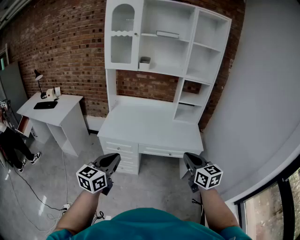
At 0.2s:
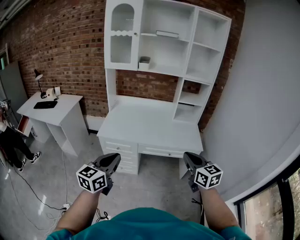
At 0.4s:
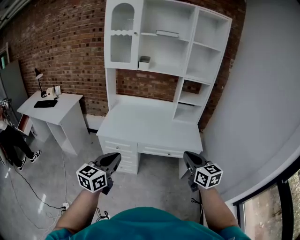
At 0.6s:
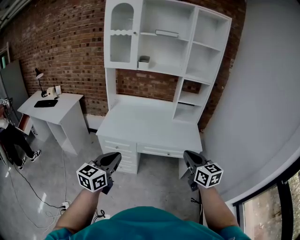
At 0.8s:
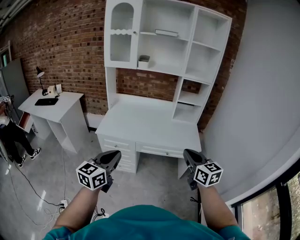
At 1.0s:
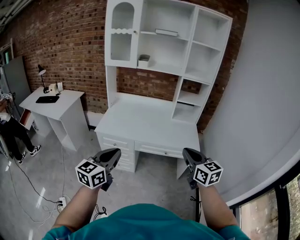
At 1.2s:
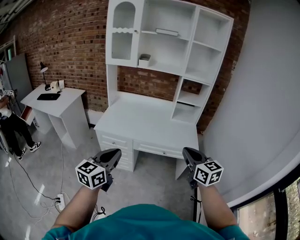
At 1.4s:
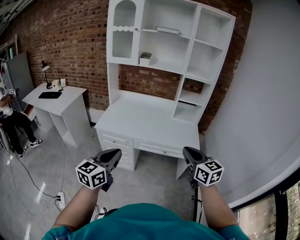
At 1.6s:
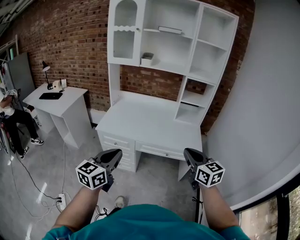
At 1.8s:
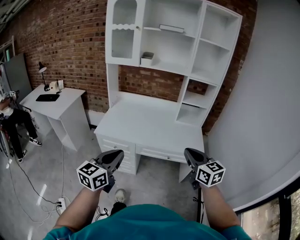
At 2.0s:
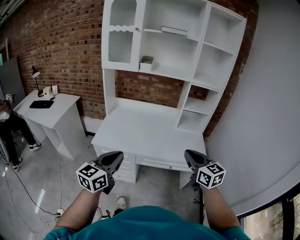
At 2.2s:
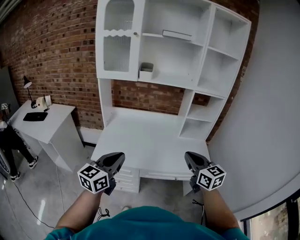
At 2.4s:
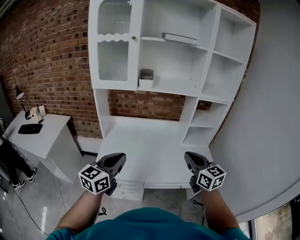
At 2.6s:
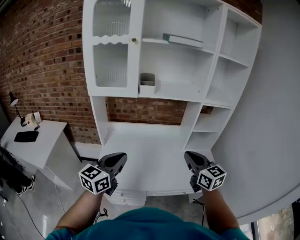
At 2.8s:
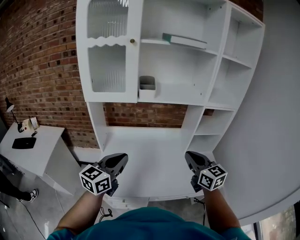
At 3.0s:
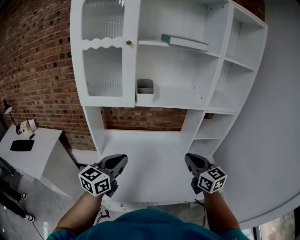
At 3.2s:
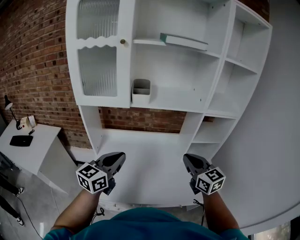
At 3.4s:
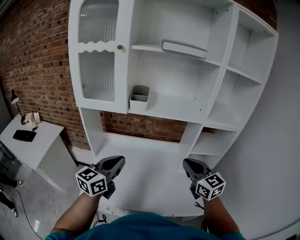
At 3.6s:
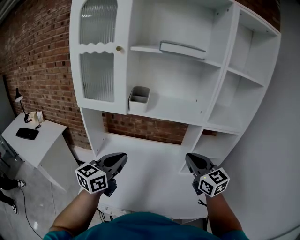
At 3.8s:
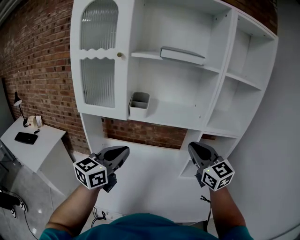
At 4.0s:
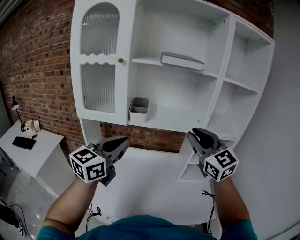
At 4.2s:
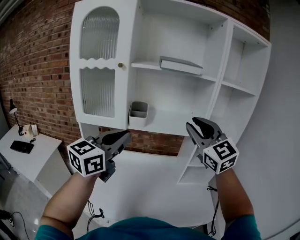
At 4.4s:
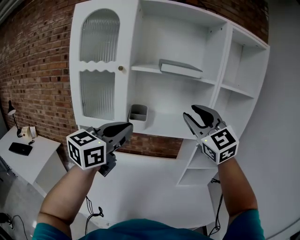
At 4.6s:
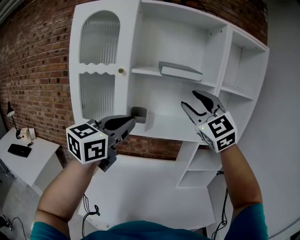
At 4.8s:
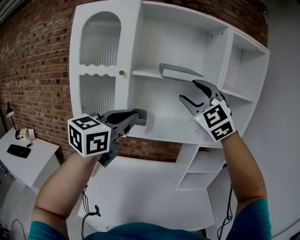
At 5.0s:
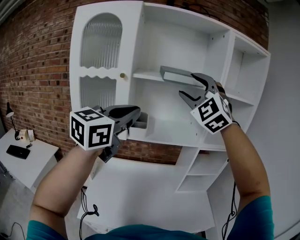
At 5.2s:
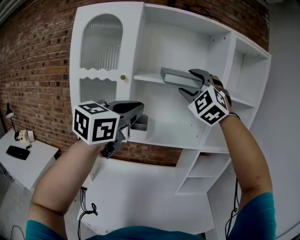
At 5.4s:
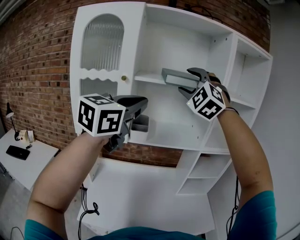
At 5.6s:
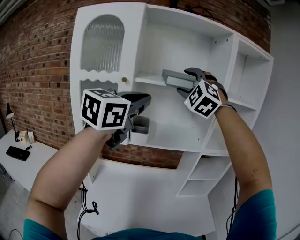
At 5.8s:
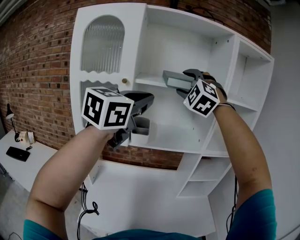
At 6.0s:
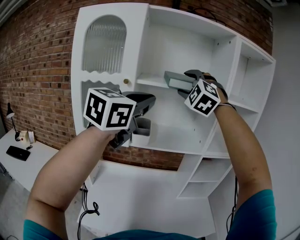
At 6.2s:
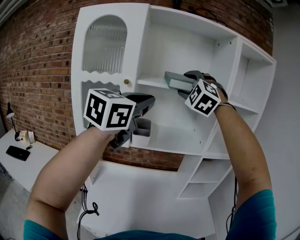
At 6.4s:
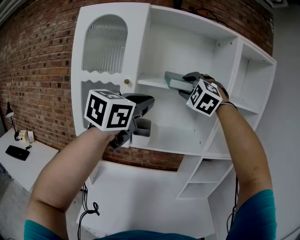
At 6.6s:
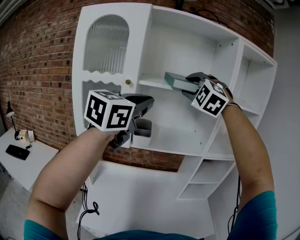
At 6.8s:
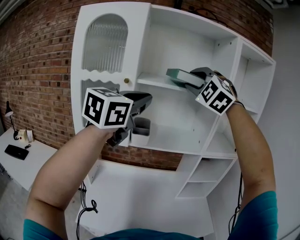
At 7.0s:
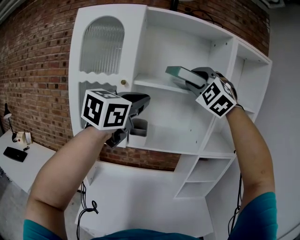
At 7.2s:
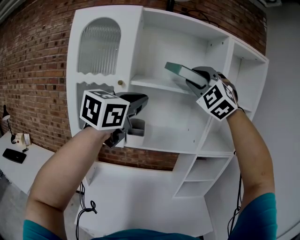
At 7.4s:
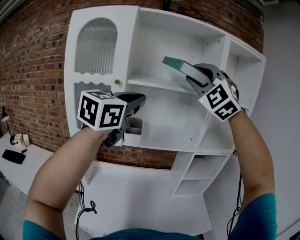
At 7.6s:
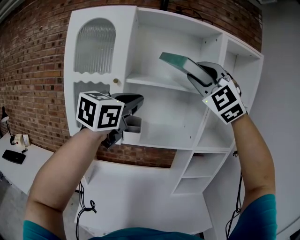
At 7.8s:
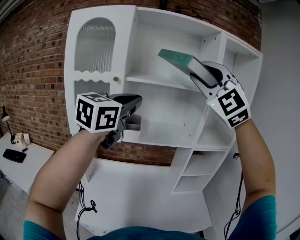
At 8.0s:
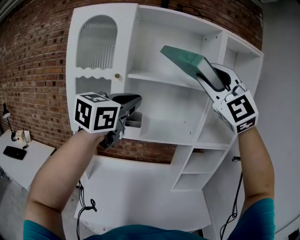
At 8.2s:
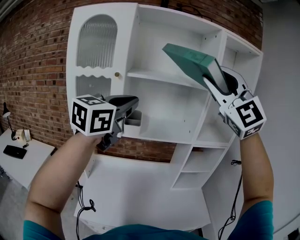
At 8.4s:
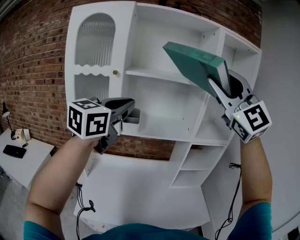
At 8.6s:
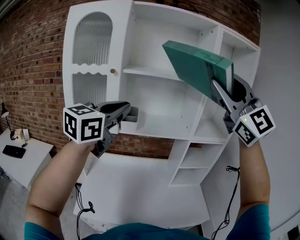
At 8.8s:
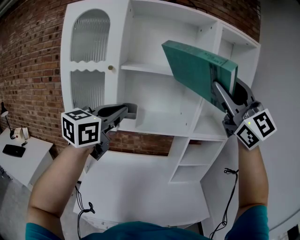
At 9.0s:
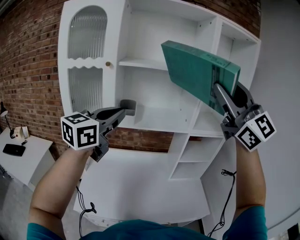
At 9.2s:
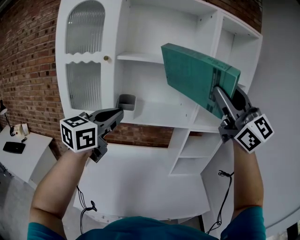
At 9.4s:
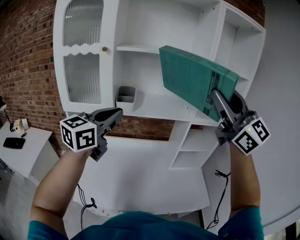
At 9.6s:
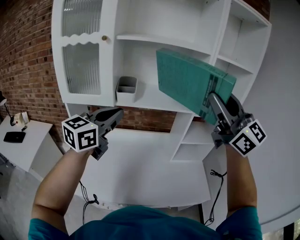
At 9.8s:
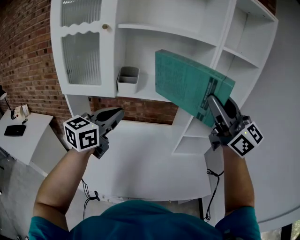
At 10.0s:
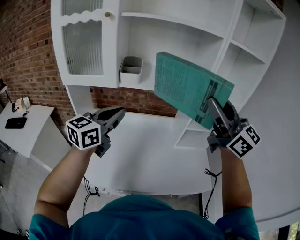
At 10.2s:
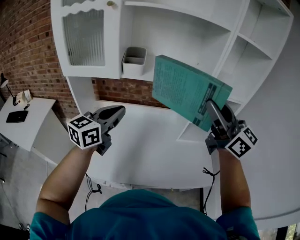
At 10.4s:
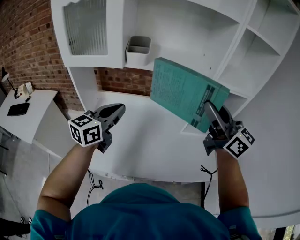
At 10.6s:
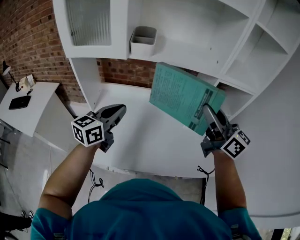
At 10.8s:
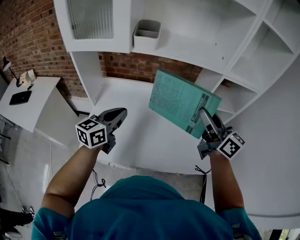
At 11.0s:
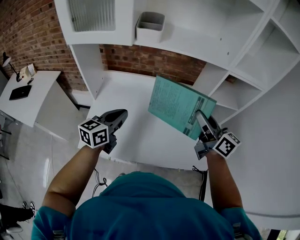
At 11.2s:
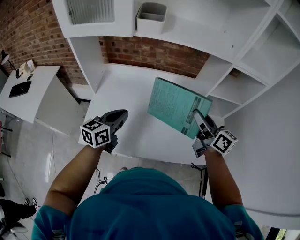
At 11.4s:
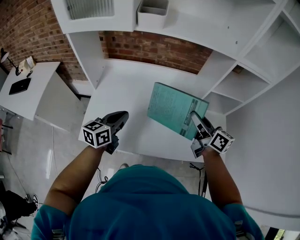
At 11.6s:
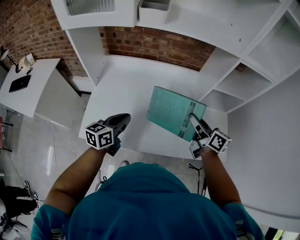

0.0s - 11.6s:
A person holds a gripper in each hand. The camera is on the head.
0.0s - 1.4s: The two grippers go about 5 cm to the right.
1.4s - 2.8s: Both grippers are carried forward and to the left, roughly 40 cm.
2.8s - 4.4s: The two grippers go some 30 cm upward and forward. The right gripper twists roughly 40 degrees counterclockwise, seen from behind, and opens up.
4.4s - 5.8s: The right gripper moves forward, upward and to the left, some 20 cm, rotates around the line of its fingers by roughly 40 degrees, counterclockwise from behind, and opens. Meanwhile the left gripper heads upward and forward, covering roughly 15 cm.
5.8s - 7.2s: The right gripper travels backward by some 5 cm, and closes its fingers.
7.2s - 8.8s: The left gripper heads downward and backward, covering roughly 10 cm, while the right gripper travels backward and to the right by some 20 cm, and turns by roughly 50 degrees.
8.8s - 10.2s: Both grippers travel together downward, some 20 cm. The right gripper twists approximately 50 degrees clockwise, seen from behind.
10.2s - 11.6s: Both grippers travel together downward, some 35 cm. The right gripper rolls clockwise, seen from behind, by some 40 degrees. The left gripper rotates approximately 30 degrees.

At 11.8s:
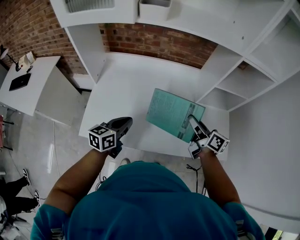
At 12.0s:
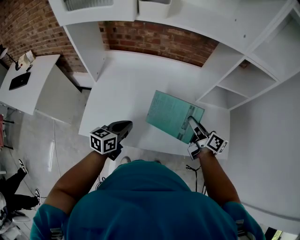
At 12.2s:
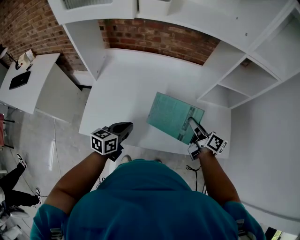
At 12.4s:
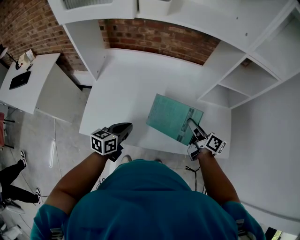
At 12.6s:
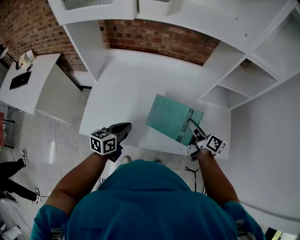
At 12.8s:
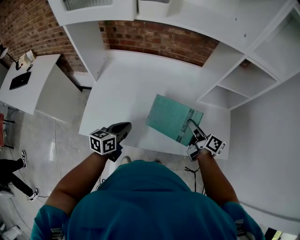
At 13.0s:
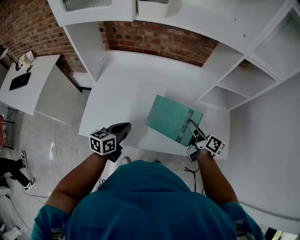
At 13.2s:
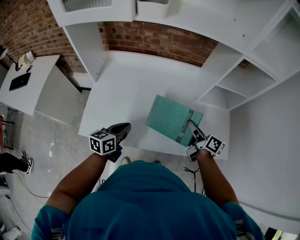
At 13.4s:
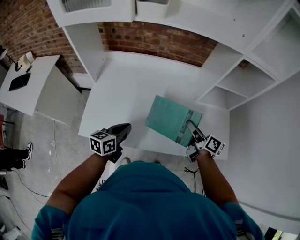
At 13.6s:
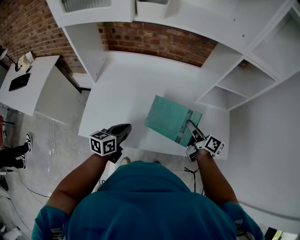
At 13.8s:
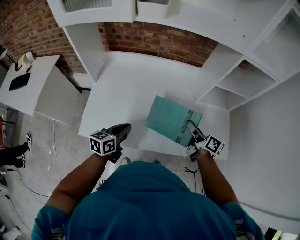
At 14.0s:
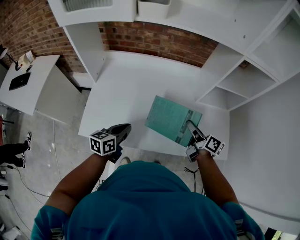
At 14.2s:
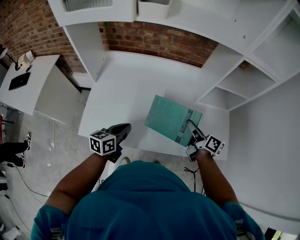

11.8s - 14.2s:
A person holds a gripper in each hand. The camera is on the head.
11.8s - 13.0s: The right gripper is displaced downward by approximately 5 cm.
13.0s - 14.2s: The two grippers keep their place.

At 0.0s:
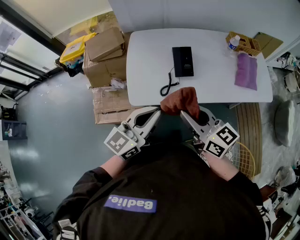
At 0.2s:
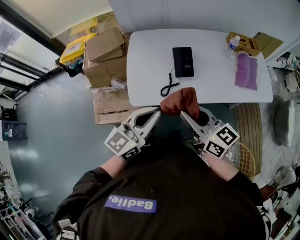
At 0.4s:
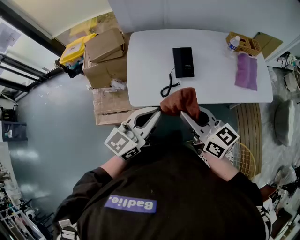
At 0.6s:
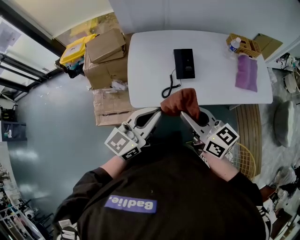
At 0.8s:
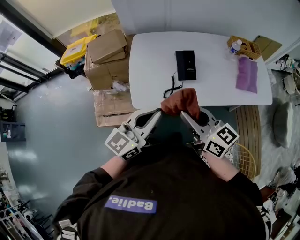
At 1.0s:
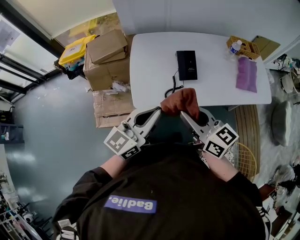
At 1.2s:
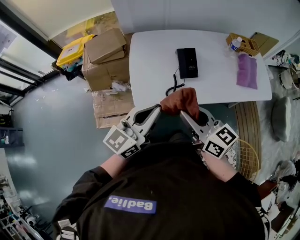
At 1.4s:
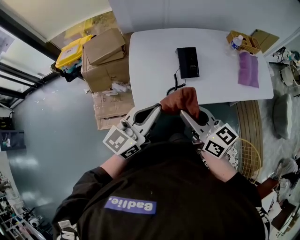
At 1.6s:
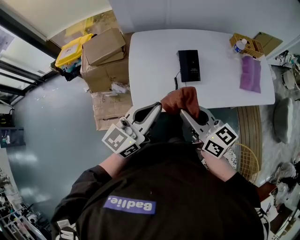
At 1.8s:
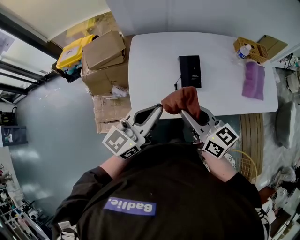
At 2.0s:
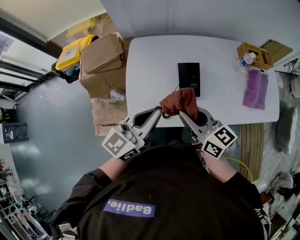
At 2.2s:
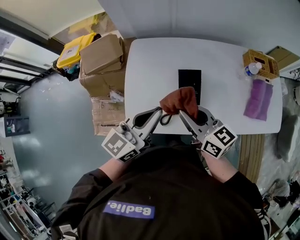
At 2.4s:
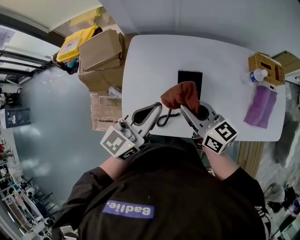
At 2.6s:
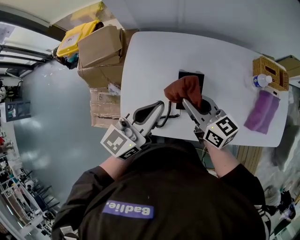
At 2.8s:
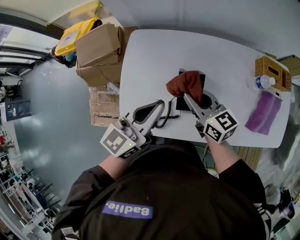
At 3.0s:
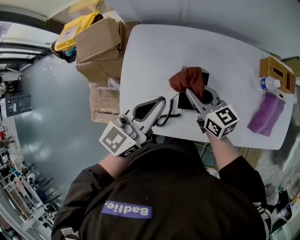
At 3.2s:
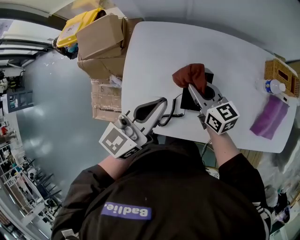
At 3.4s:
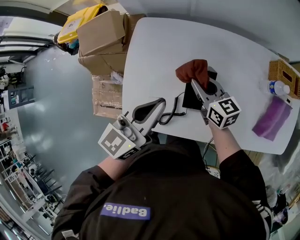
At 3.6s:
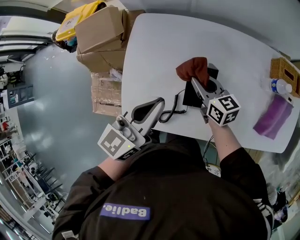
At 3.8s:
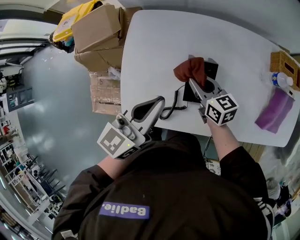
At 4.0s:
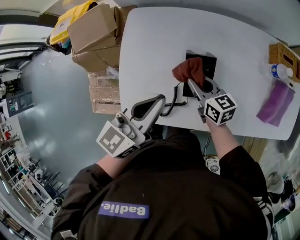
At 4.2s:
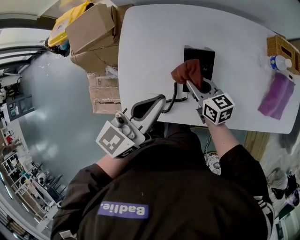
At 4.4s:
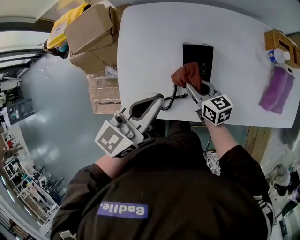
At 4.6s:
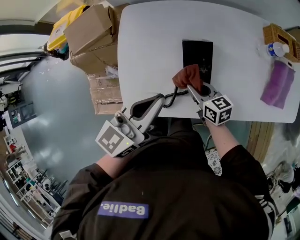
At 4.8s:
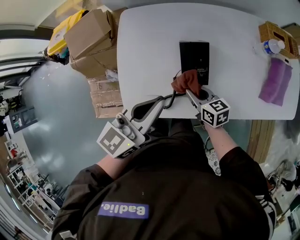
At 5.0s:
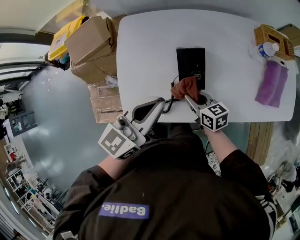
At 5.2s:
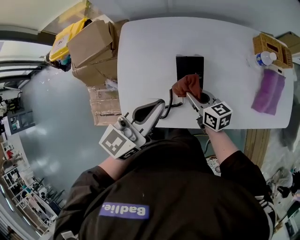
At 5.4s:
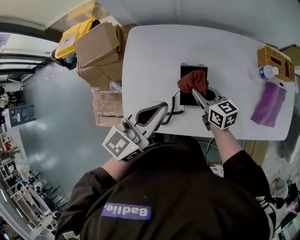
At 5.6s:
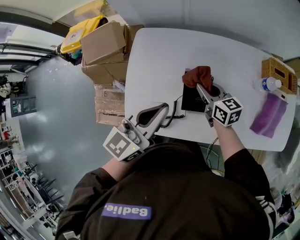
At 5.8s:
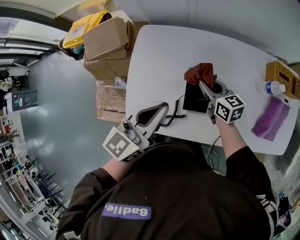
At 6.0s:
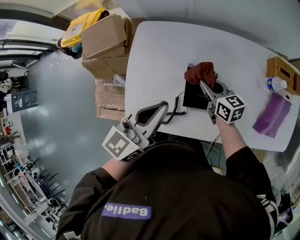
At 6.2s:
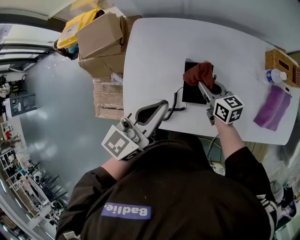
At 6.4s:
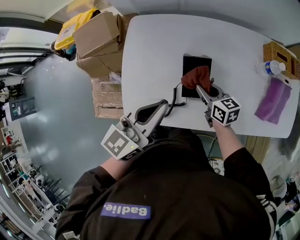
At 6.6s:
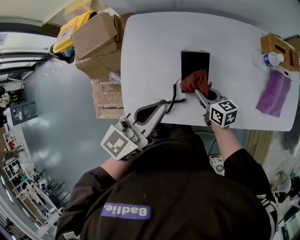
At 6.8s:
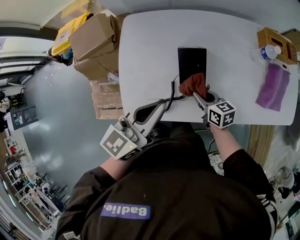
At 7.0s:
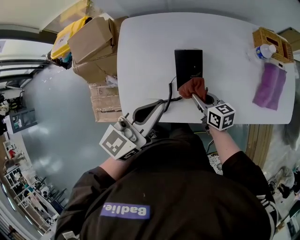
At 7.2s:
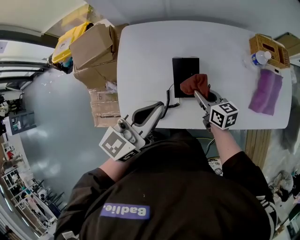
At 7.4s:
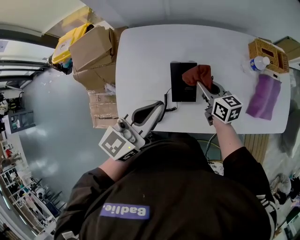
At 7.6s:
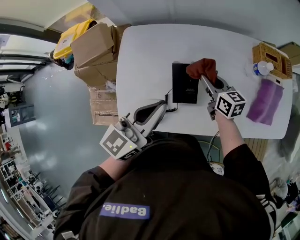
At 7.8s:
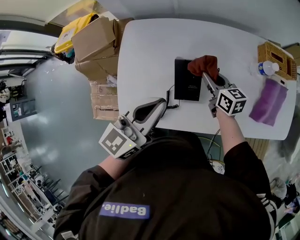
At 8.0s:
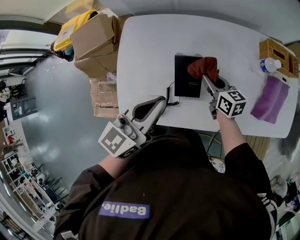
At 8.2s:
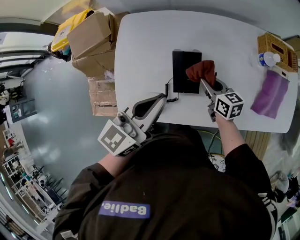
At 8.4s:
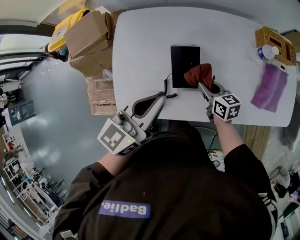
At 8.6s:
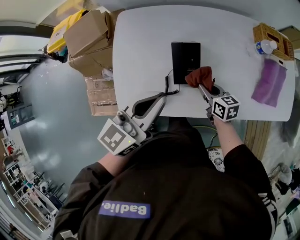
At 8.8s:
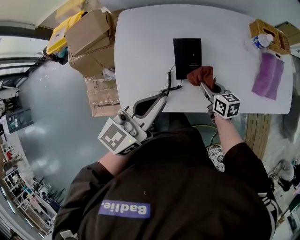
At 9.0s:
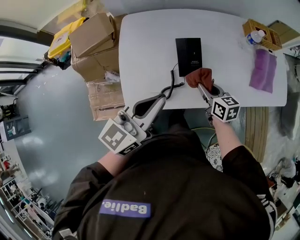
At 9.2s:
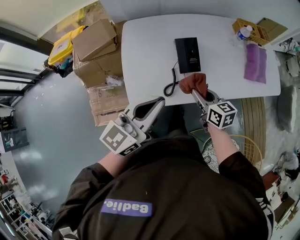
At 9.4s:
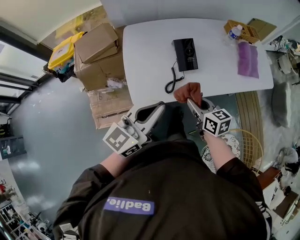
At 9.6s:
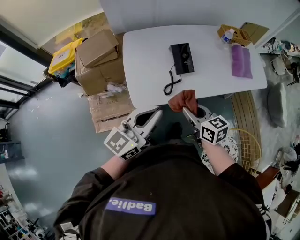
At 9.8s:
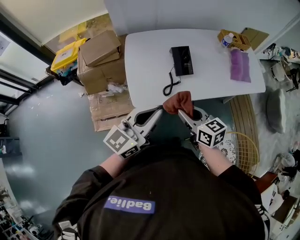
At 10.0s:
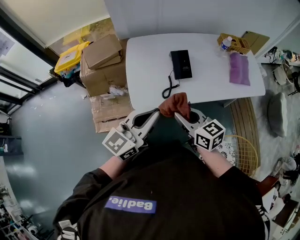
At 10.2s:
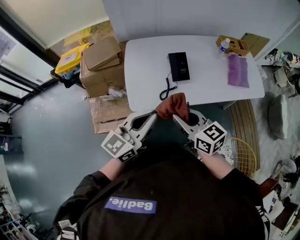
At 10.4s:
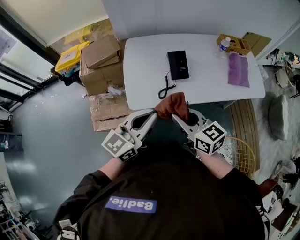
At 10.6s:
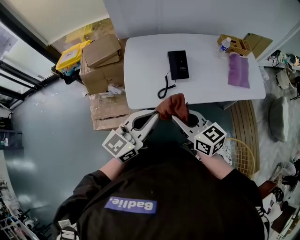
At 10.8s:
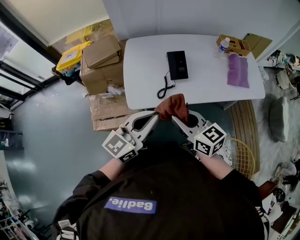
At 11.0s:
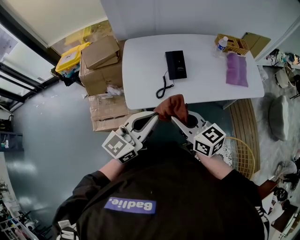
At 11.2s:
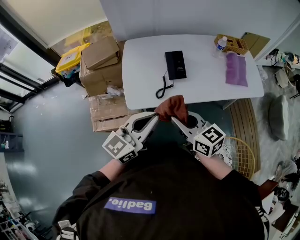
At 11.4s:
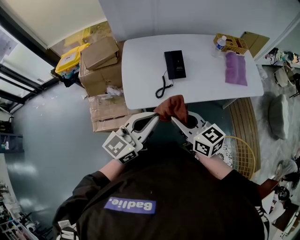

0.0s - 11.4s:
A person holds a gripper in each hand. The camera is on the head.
0.0s - 1.4s: Both grippers move to the left, roughly 5 cm.
1.4s - 2.8s: The right gripper goes about 30 cm forward. Meanwhile the left gripper shifts roughly 25 cm forward and to the right.
2.8s - 4.2s: The right gripper moves downward, about 15 cm.
4.2s - 5.6s: The right gripper heads forward, covering approximately 5 cm.
5.6s - 7.2s: The right gripper heads backward, covering approximately 10 cm.
7.2s - 8.6s: The right gripper moves downward, about 5 cm, and moves some 10 cm forward and comes back.
8.6s - 10.0s: The right gripper moves backward, upward and to the left, some 40 cm. Meanwhile the left gripper heads backward, covering about 25 cm.
10.0s - 11.4s: The left gripper moves approximately 5 cm. Meanwhile the right gripper ends up some 5 cm from where it was.
